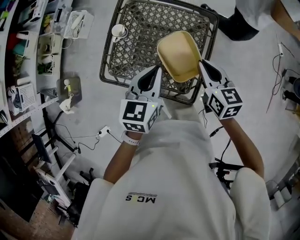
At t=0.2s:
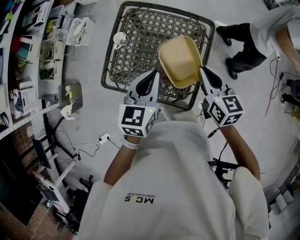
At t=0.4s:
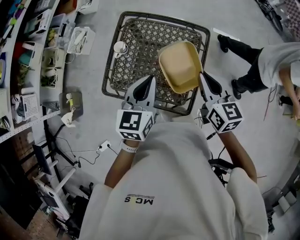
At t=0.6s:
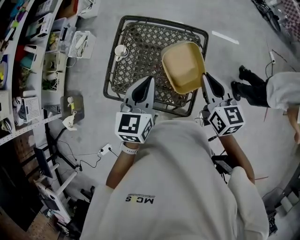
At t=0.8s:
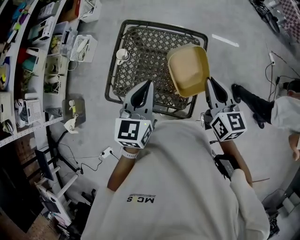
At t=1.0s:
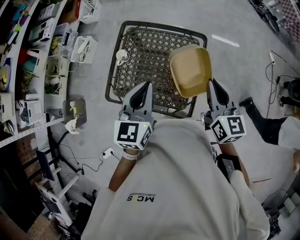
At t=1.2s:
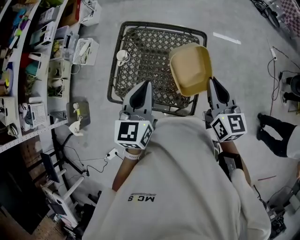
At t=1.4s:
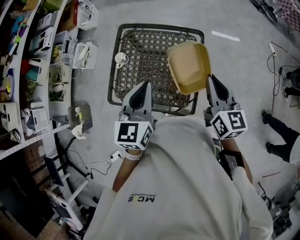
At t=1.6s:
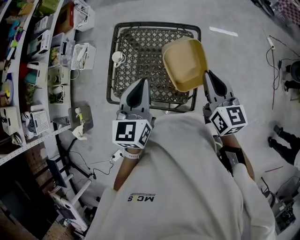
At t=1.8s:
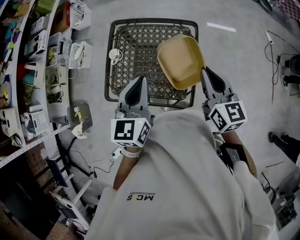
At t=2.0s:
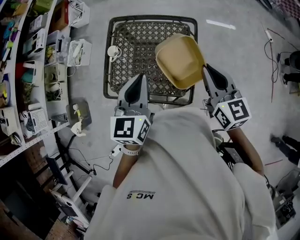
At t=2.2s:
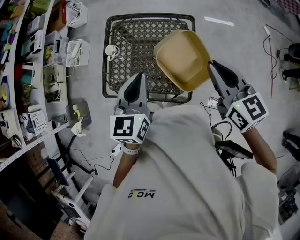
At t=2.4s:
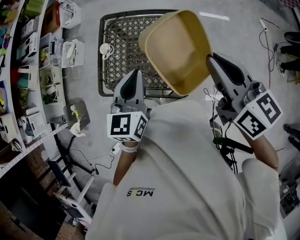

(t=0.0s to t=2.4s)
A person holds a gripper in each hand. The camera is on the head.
t=0.0s - t=1.2s: The grippers both shift upward by some 10 cm. The right gripper rotates some 20 degrees.
t=1.2s - t=2.4s: The right gripper moves upward, about 10 cm.

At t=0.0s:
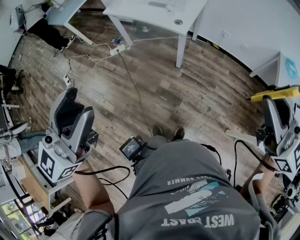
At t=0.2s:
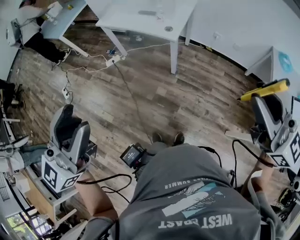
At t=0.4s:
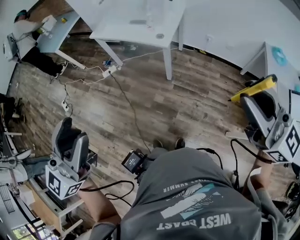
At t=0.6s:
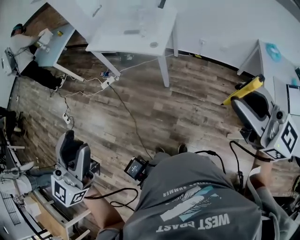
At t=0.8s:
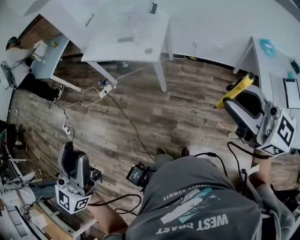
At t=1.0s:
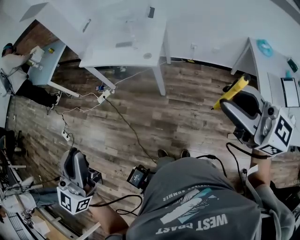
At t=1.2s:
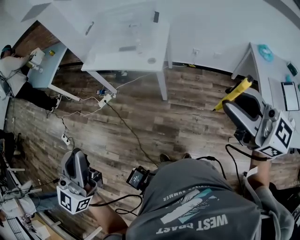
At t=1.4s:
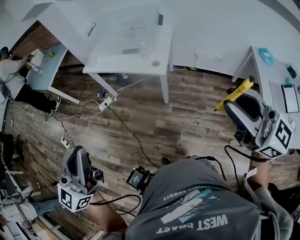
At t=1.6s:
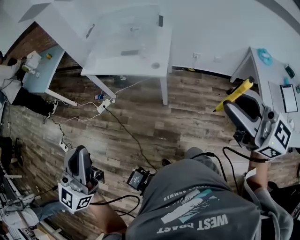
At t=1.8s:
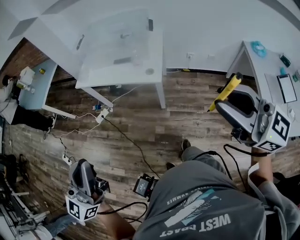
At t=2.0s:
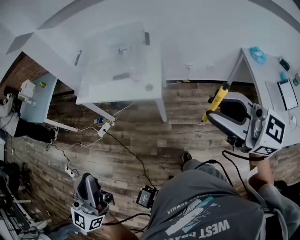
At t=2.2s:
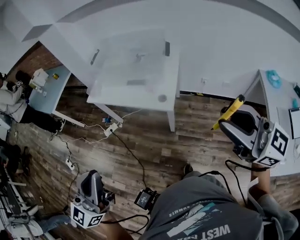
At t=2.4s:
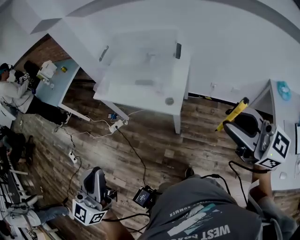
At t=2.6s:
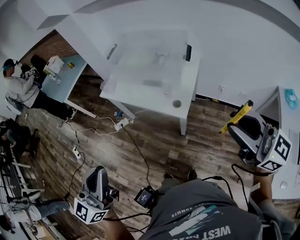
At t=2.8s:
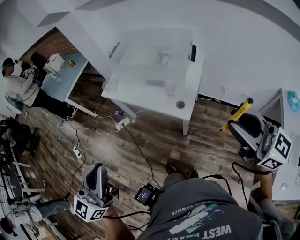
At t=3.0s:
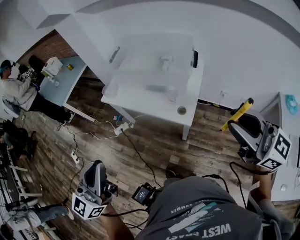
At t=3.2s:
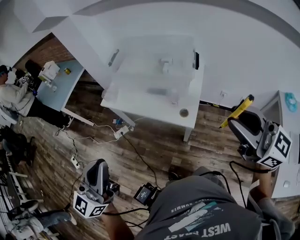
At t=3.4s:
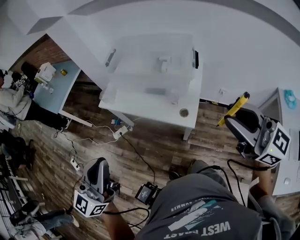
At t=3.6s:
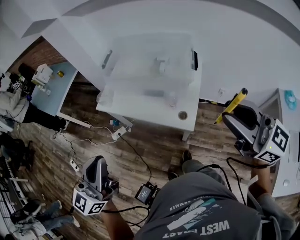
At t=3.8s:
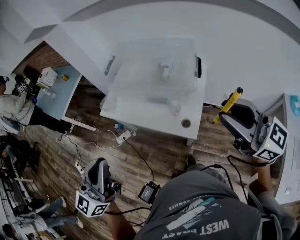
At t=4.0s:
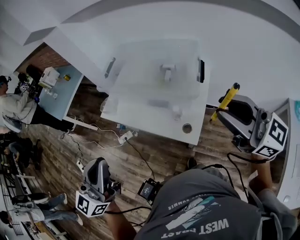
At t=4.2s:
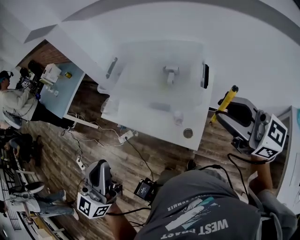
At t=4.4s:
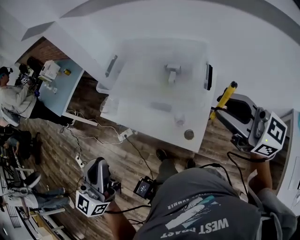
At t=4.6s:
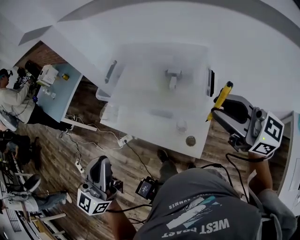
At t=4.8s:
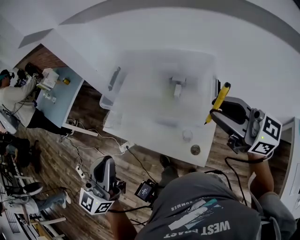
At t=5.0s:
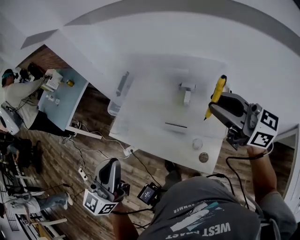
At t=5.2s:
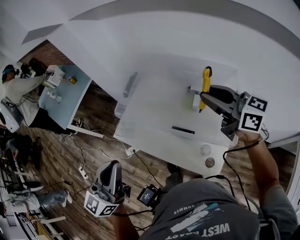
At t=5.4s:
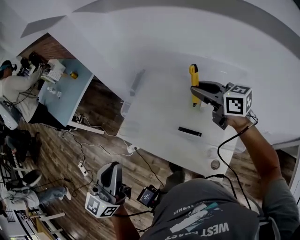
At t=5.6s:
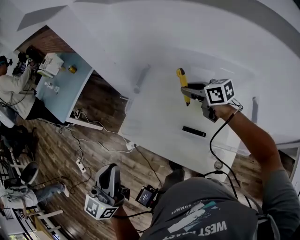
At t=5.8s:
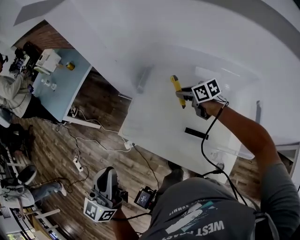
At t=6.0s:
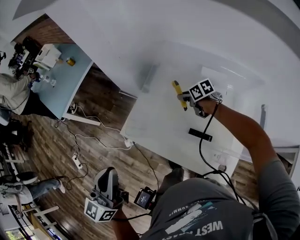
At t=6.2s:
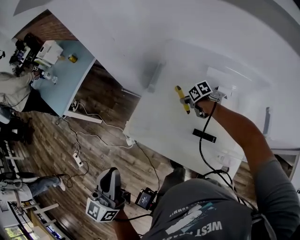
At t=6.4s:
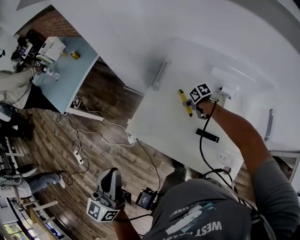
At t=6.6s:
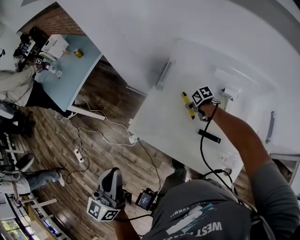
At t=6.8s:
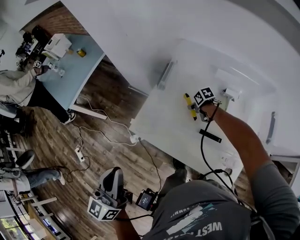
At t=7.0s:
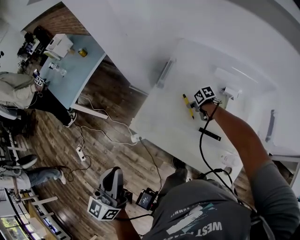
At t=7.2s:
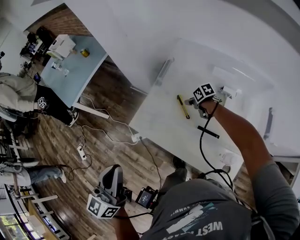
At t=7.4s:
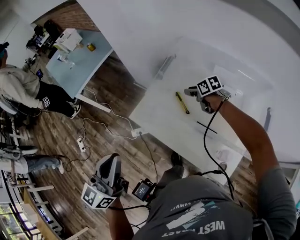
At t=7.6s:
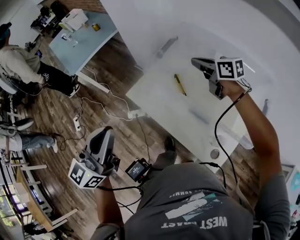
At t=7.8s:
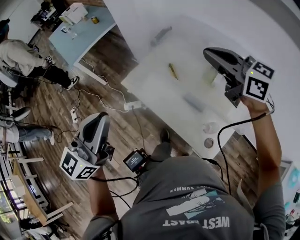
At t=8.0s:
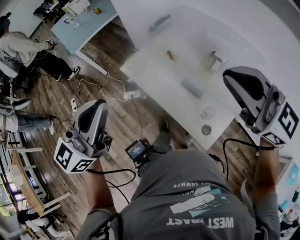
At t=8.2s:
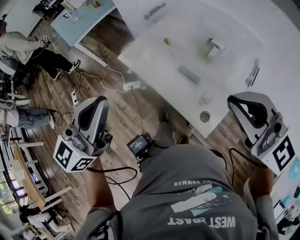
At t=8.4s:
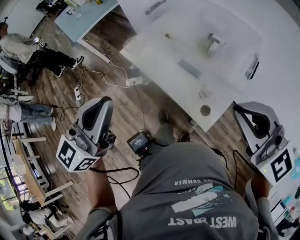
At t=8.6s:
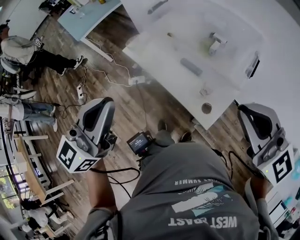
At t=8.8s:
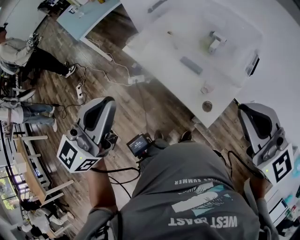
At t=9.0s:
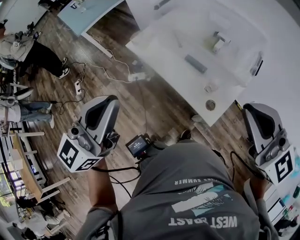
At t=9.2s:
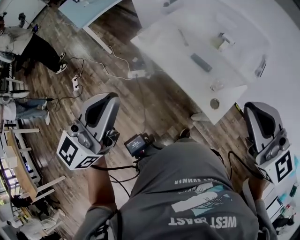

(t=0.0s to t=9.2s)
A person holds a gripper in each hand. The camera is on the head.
t=0.0s - t=1.6s: Both grippers move forward and to the left, approximately 15 cm. The left gripper closes its fingers.
t=1.6s - t=3.0s: The two grippers go roughly 25 cm forward.
t=3.0s - t=4.6s: The two grippers go approximately 25 cm forward.
t=4.6s - t=6.2s: The left gripper moves forward, to the left and downward, approximately 30 cm, and turns by roughly 20 degrees, while the right gripper goes roughly 70 cm forward and downward, and angles its fingers downward, by some 60 degrees.
t=6.2s - t=7.6s: The right gripper heads upward, covering some 30 cm, swivels about 30 degrees, and closes. Meanwhile the left gripper goes approximately 10 cm backward and upward.
t=7.6s - t=9.2s: The right gripper goes about 50 cm backward, and twists some 40 degrees counterclockwise, seen from behind. The left gripper shifts about 20 cm backward.

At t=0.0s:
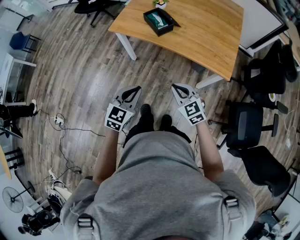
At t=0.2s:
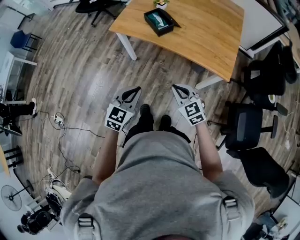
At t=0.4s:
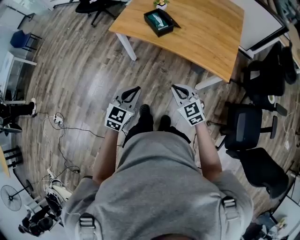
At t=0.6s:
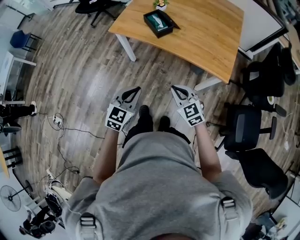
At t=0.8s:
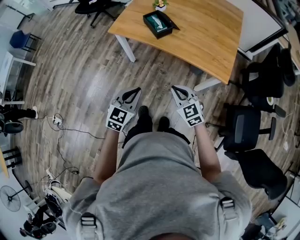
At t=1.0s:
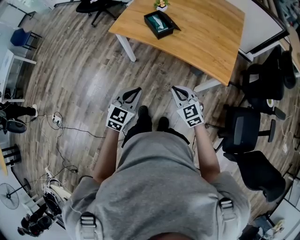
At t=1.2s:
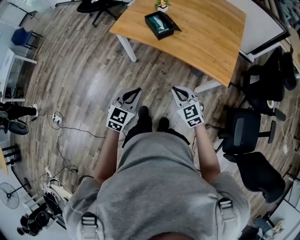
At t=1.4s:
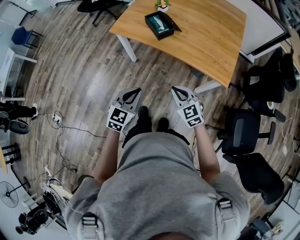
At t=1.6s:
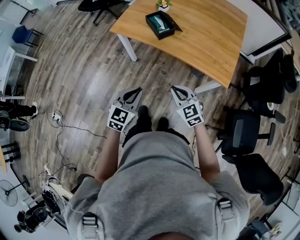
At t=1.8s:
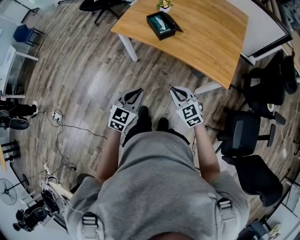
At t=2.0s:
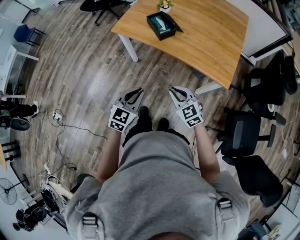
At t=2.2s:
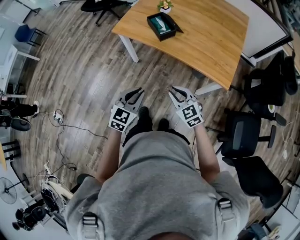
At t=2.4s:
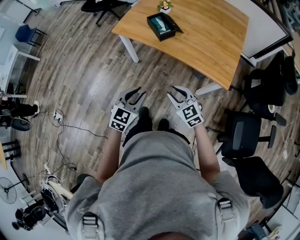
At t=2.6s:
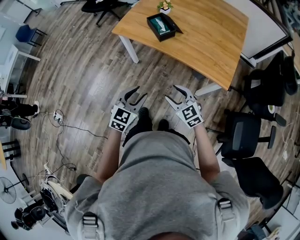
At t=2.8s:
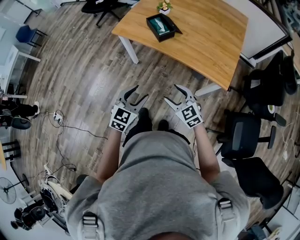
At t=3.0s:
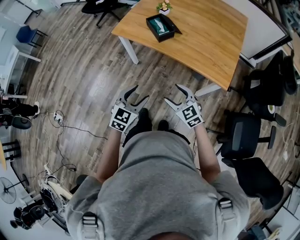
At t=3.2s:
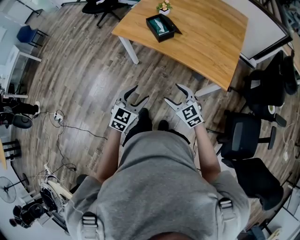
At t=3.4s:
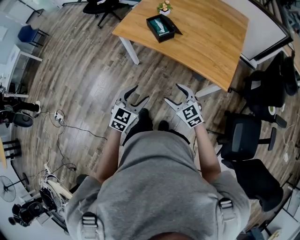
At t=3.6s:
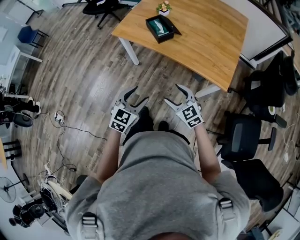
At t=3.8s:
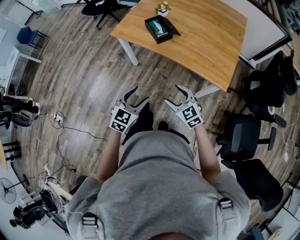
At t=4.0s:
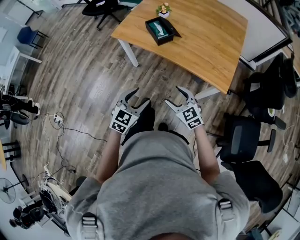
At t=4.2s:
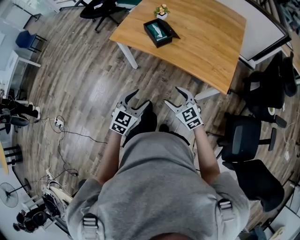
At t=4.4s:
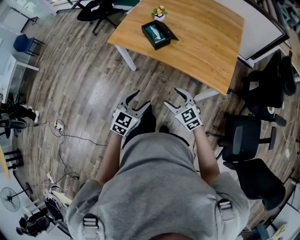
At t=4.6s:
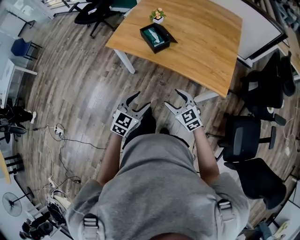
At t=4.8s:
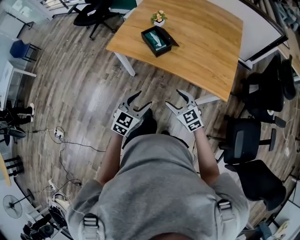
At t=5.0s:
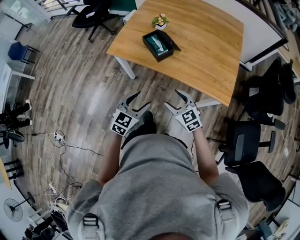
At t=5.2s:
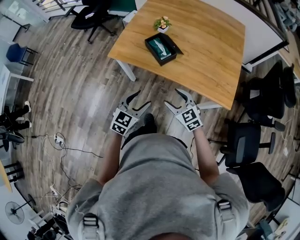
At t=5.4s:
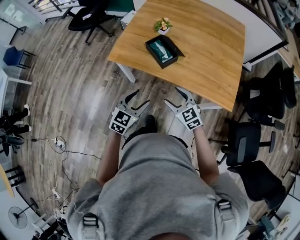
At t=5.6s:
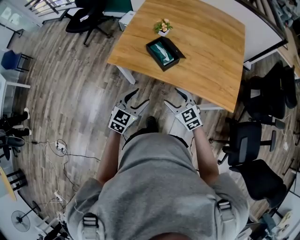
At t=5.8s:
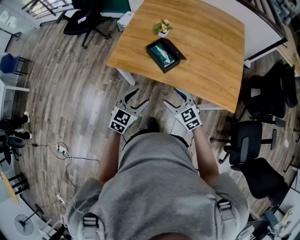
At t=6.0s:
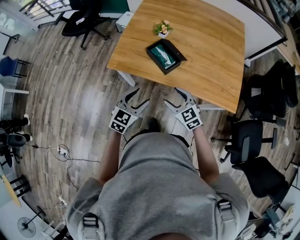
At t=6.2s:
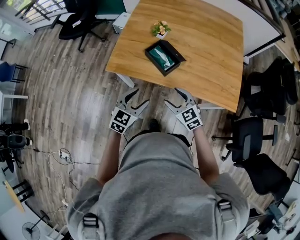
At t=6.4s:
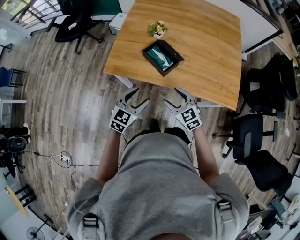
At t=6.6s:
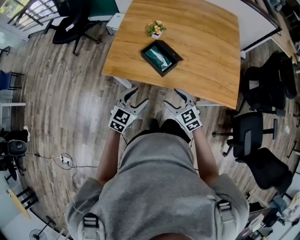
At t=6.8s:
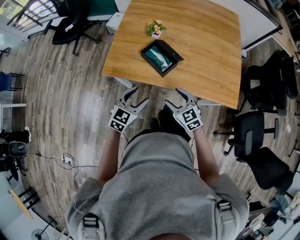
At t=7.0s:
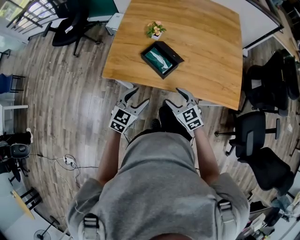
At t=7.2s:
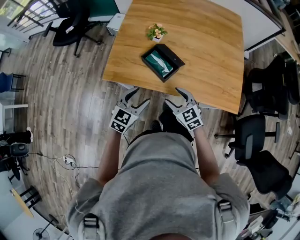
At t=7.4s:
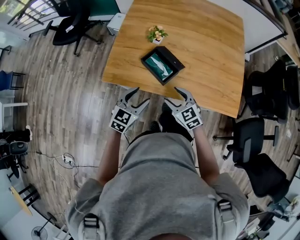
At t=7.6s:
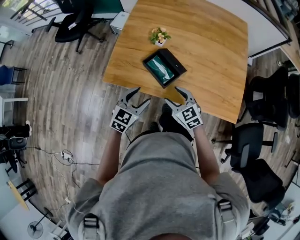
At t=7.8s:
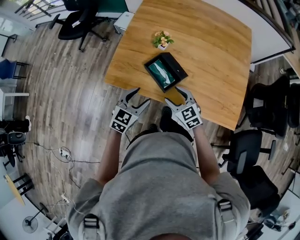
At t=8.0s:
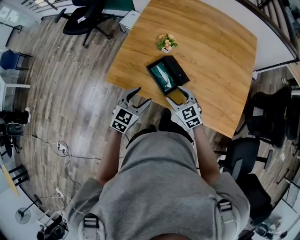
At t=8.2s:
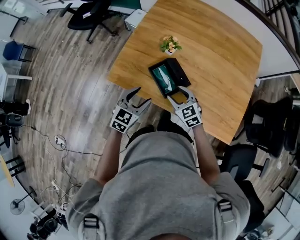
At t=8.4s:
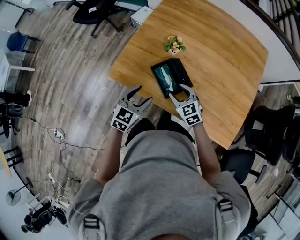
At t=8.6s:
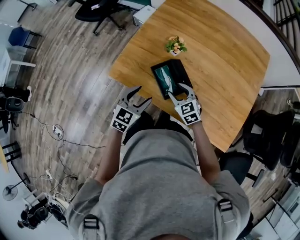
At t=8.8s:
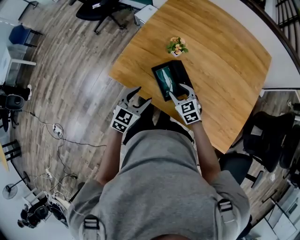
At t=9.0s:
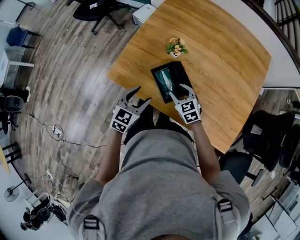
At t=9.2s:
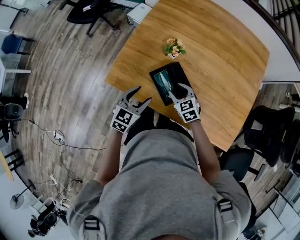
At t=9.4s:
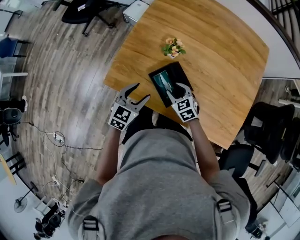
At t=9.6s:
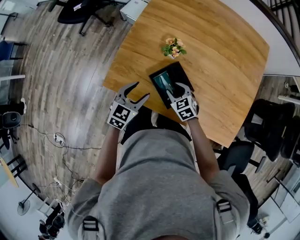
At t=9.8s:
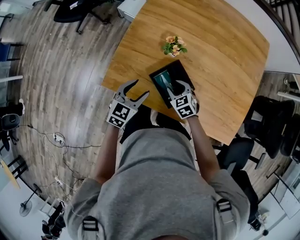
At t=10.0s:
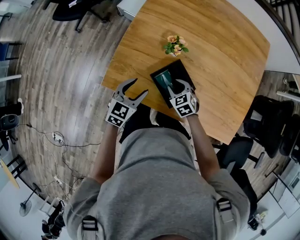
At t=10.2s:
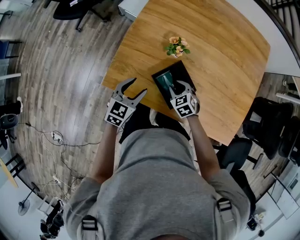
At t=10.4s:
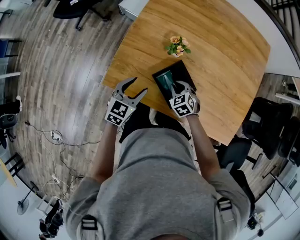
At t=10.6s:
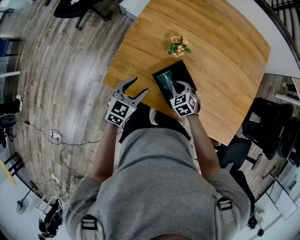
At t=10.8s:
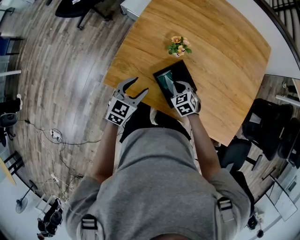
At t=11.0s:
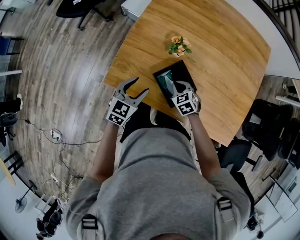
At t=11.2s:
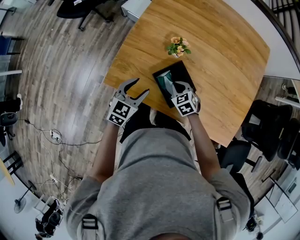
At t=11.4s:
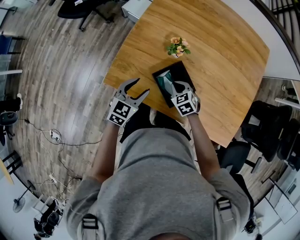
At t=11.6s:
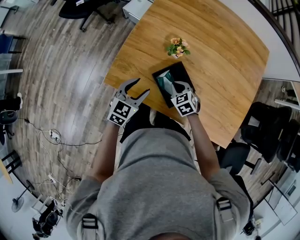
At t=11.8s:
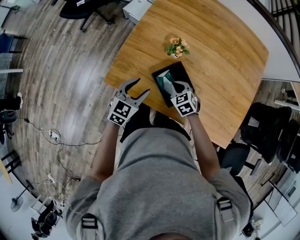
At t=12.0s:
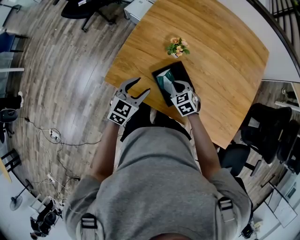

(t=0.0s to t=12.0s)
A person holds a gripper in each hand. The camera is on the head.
t=0.0s - t=1.6s: The grippers move only a little.
t=1.6s - t=3.0s: The right gripper opens. Meanwhile the left gripper opens.
t=3.0s - t=4.4s: There are only small adjustments of the grippers.
t=4.4s - t=6.0s: The grippers both shift forward and to the left by approximately 25 cm.
t=6.0s - t=7.6s: Both grippers travel together forward, approximately 10 cm.
t=7.6s - t=9.0s: The right gripper heads forward, covering roughly 15 cm. The left gripper heads forward, covering roughly 5 cm.
t=9.0s - t=10.4s: The left gripper shifts approximately 10 cm forward and to the left; the right gripper is displaced downward and forward by roughly 10 cm, swivels approximately 20 degrees, and closes.
t=10.4s - t=12.0s: The grippers move only a little.
